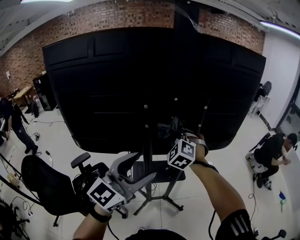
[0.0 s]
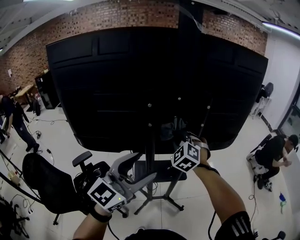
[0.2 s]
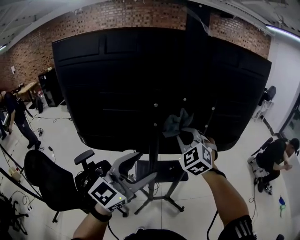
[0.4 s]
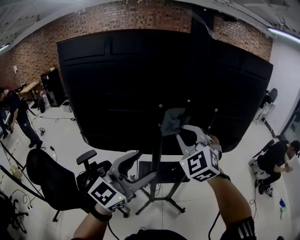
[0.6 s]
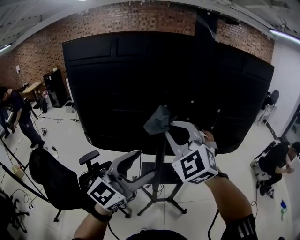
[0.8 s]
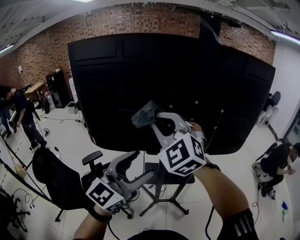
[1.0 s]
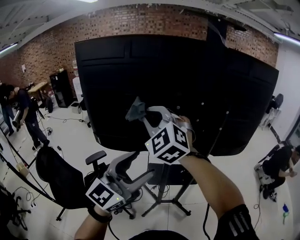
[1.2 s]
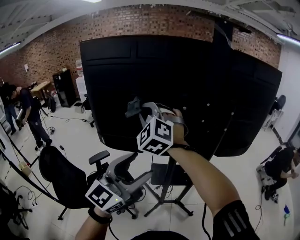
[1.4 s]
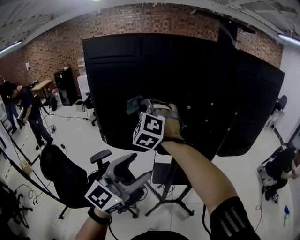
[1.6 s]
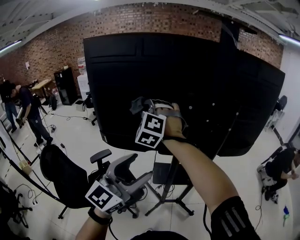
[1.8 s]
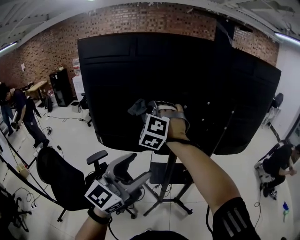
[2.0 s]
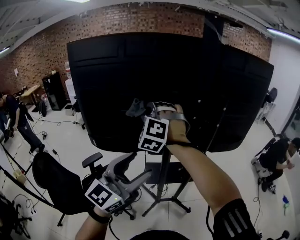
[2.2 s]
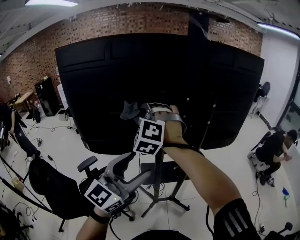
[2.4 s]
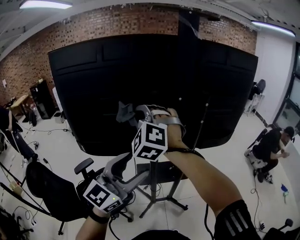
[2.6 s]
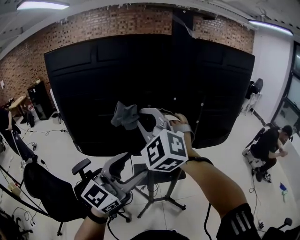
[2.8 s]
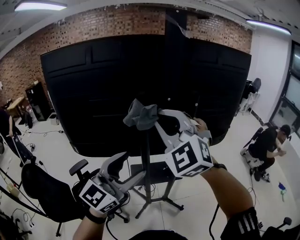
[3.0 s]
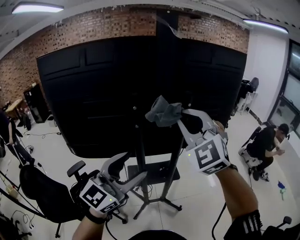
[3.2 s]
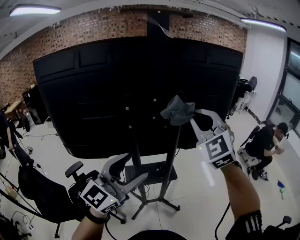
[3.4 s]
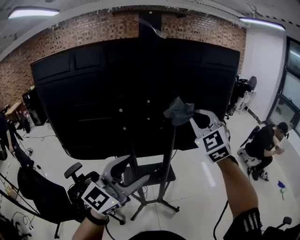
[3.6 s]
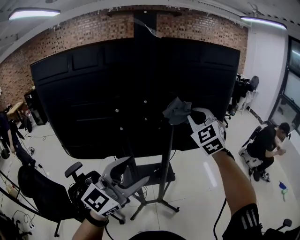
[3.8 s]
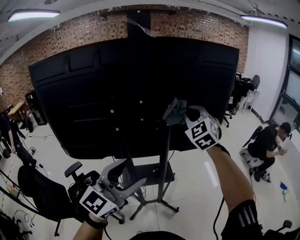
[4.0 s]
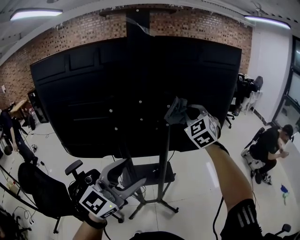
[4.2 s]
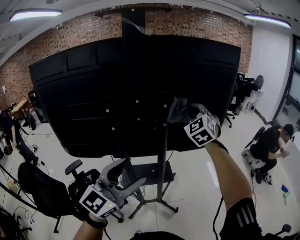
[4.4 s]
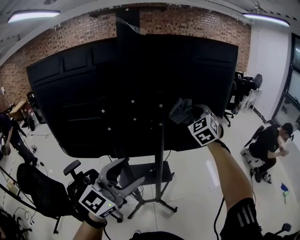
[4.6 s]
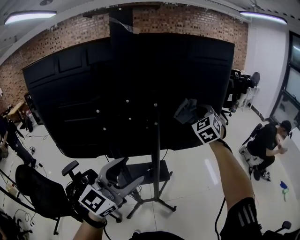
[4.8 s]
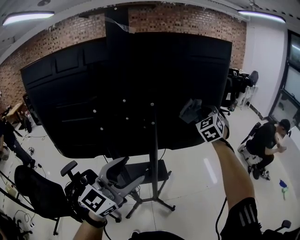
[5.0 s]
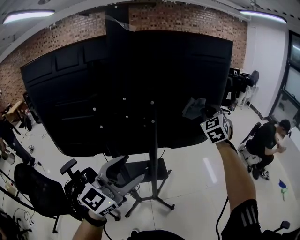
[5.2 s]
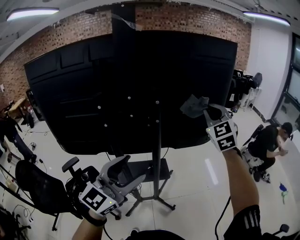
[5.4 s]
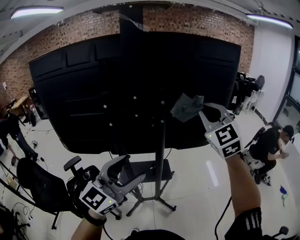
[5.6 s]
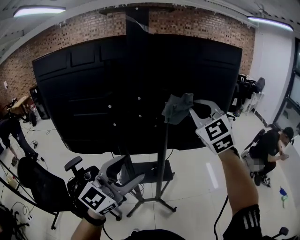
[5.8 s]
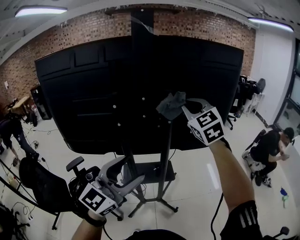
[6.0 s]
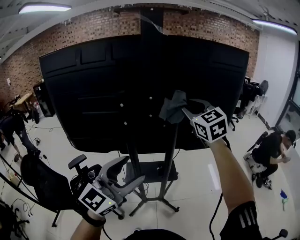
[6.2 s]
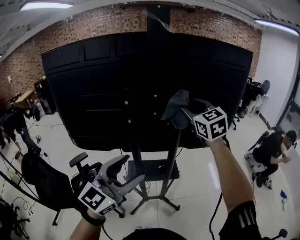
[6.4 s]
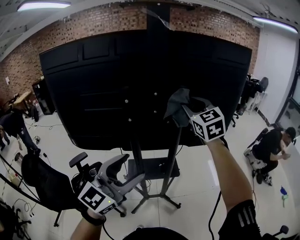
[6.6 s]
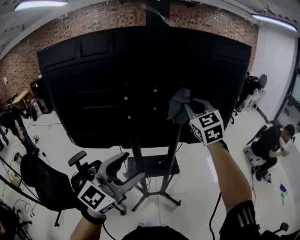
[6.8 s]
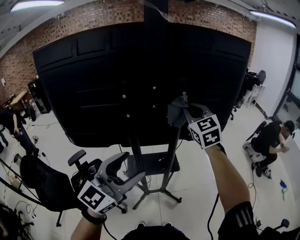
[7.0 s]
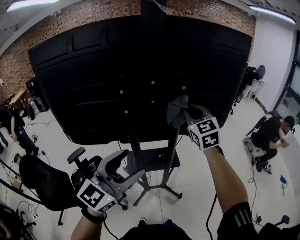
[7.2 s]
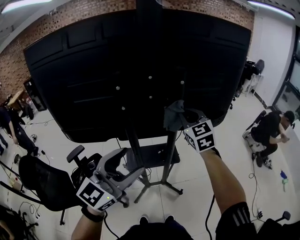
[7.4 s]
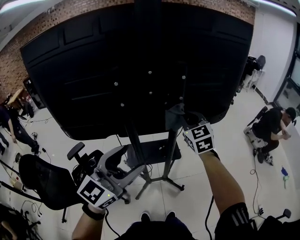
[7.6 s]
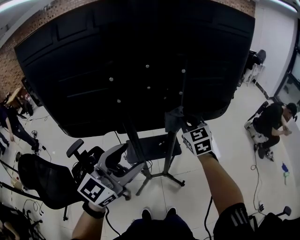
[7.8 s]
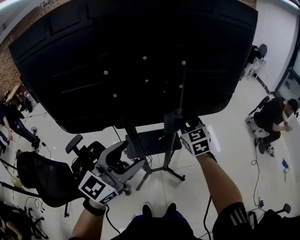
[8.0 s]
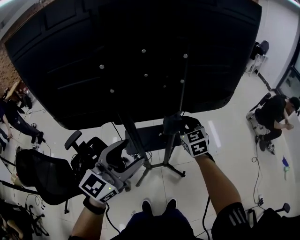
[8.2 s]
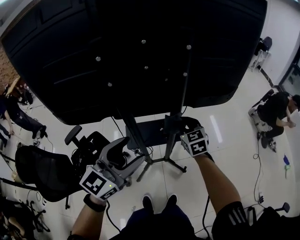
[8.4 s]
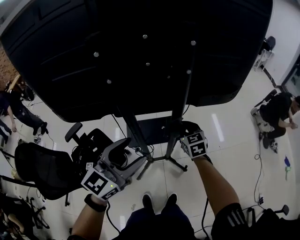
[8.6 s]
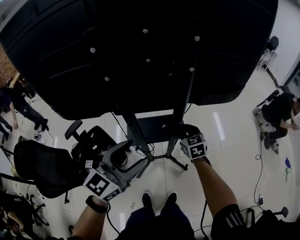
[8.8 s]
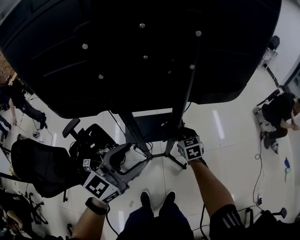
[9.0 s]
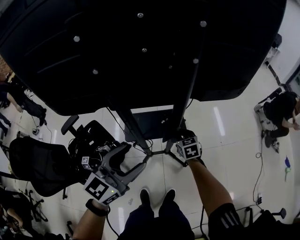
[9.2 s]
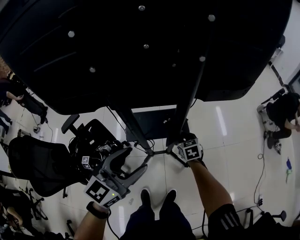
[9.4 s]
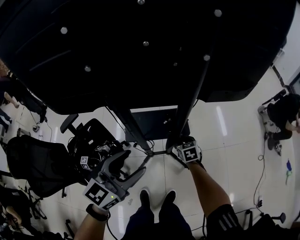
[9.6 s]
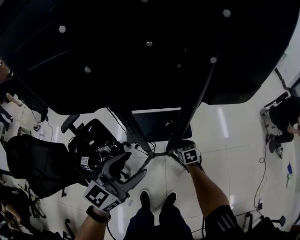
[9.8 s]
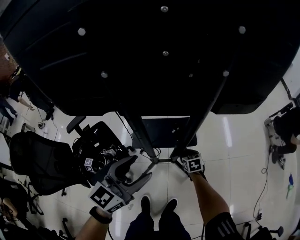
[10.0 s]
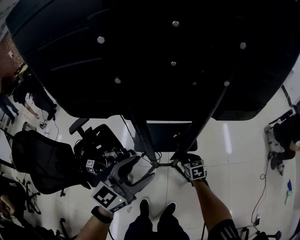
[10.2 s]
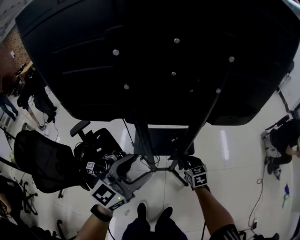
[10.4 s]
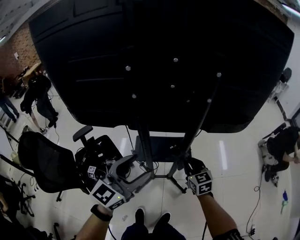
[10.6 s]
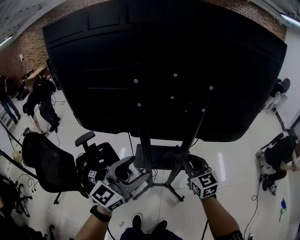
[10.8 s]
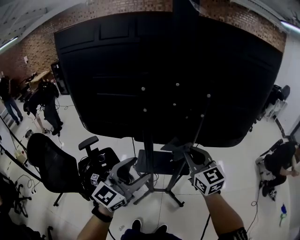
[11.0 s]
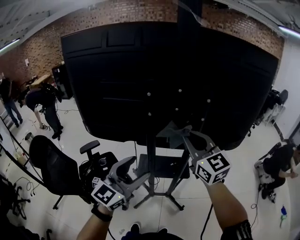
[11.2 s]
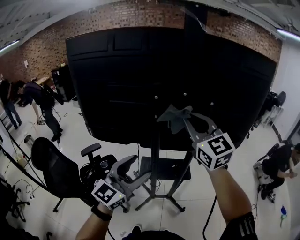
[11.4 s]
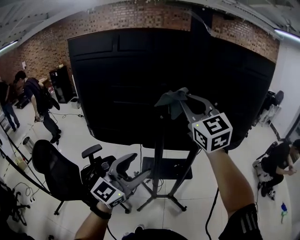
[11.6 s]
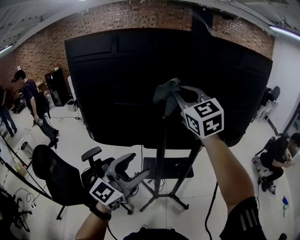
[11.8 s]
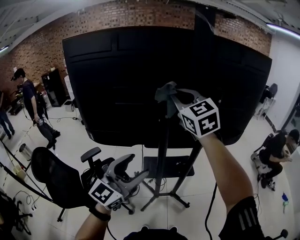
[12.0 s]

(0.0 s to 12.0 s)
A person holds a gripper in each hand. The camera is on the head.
0.0 s - 1.6 s: The right gripper travels to the left and upward by about 30 cm, and turns by roughly 20 degrees. The left gripper heads to the left and backward, covering about 15 cm.
1.6 s - 3.0 s: The left gripper is displaced to the right by approximately 10 cm. The right gripper heads to the right, covering roughly 25 cm.
3.0 s - 4.4 s: The right gripper shifts approximately 30 cm forward and to the right, and rotates about 20 degrees, while the left gripper shifts approximately 15 cm to the right.
4.4 s - 6.0 s: The right gripper shifts approximately 10 cm backward and upward, and moves roughly 15 cm to the right and comes back.
6.0 s - 7.6 s: The left gripper moves about 5 cm. The right gripper travels downward by about 20 cm, and opens, then closes again.
7.6 s - 9.0 s: The right gripper travels downward by roughly 30 cm, and rotates roughly 30 degrees, while the left gripper goes approximately 15 cm downward.
9.0 s - 10.4 s: The right gripper reaches roughly 20 cm downward, then returns.
10.4 s - 12.0 s: The left gripper travels upward, to the left and backward by some 20 cm. The right gripper is displaced upward by approximately 60 cm, and points its fingers roughly 30 degrees further upward.

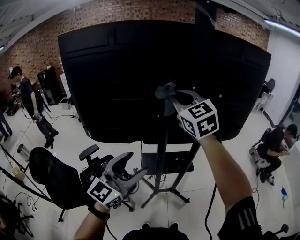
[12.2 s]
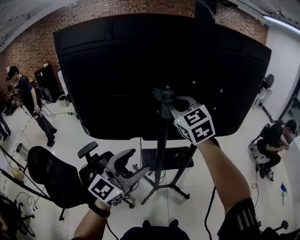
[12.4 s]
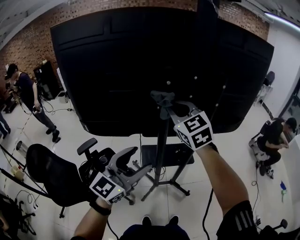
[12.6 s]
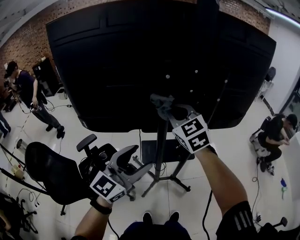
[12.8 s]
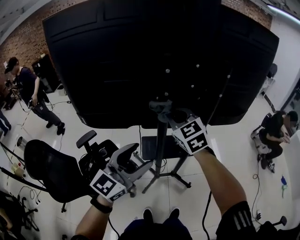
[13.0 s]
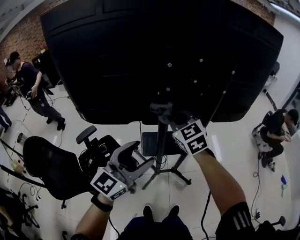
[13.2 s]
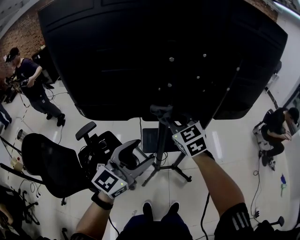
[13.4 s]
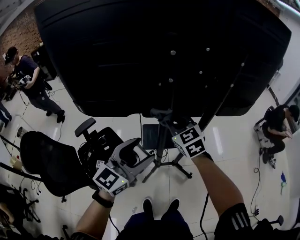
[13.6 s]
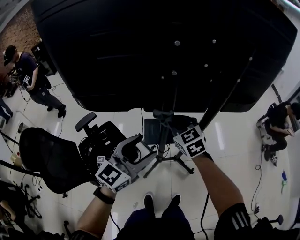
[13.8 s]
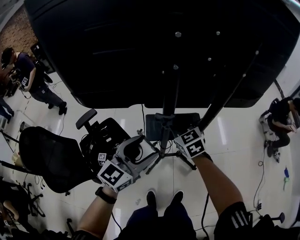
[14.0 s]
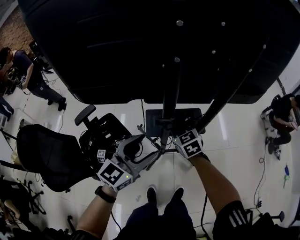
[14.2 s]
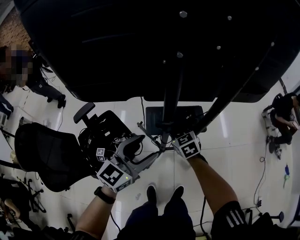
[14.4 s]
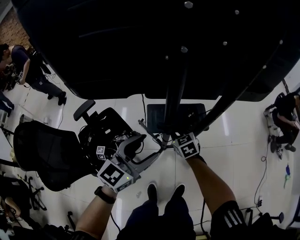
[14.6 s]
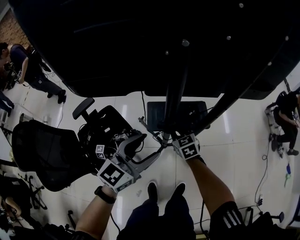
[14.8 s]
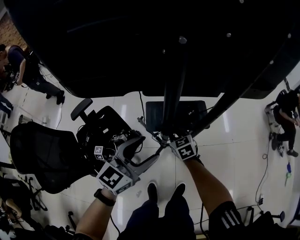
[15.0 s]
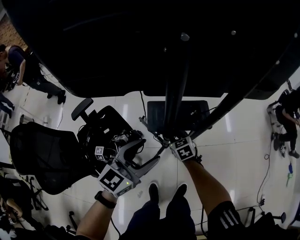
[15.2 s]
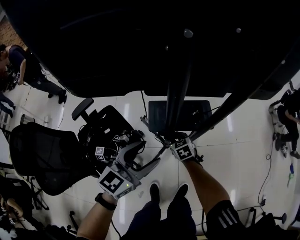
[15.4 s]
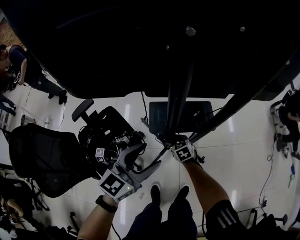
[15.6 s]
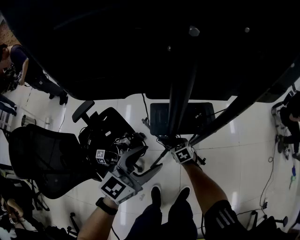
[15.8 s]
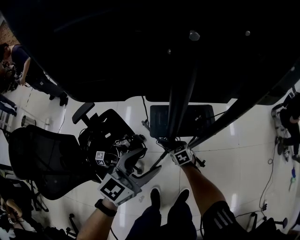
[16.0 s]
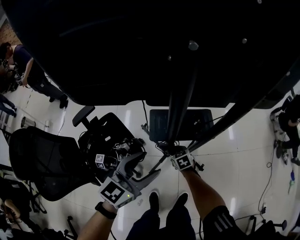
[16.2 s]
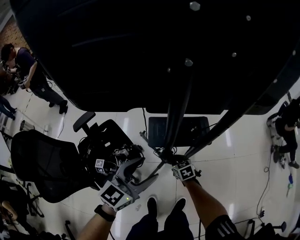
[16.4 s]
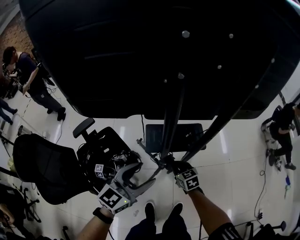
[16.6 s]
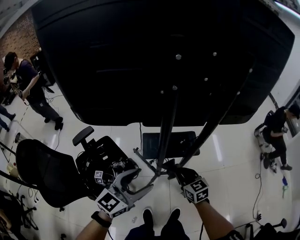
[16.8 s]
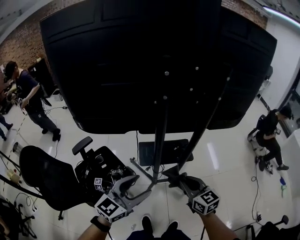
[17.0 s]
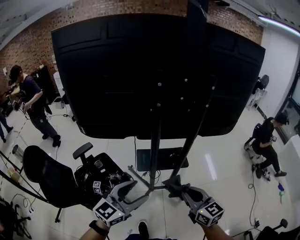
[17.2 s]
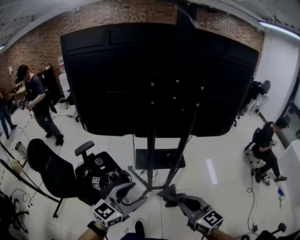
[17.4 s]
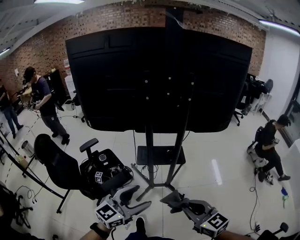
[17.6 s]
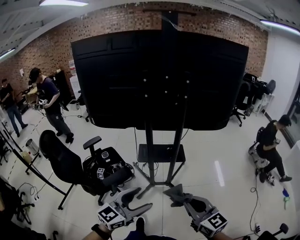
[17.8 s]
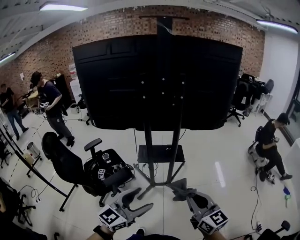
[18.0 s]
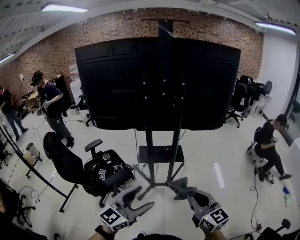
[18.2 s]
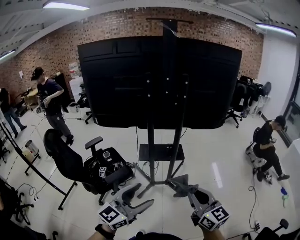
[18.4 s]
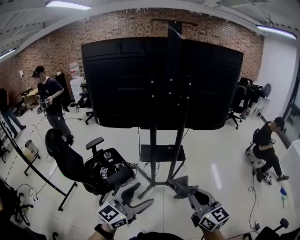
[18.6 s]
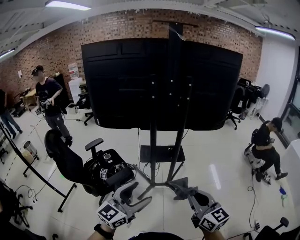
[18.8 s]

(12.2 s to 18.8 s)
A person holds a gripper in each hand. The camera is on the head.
12.2 s - 13.8 s: The right gripper heads downward, covering about 30 cm, and swivels approximately 20 degrees, while the left gripper shifts approximately 15 cm downward and forward.
13.8 s - 15.4 s: The left gripper travels downward by roughly 15 cm. Meanwhile the right gripper is displaced downward by about 35 cm, and turns by about 20 degrees.
15.4 s - 17.2 s: The left gripper shifts about 20 cm backward and upward. The right gripper heads upward and backward, covering some 40 cm, and tilts its fingers roughly 40 degrees upward.
17.2 s - 18.8 s: Both grippers travel together backward, some 25 cm.

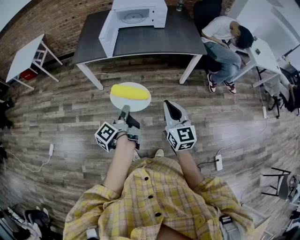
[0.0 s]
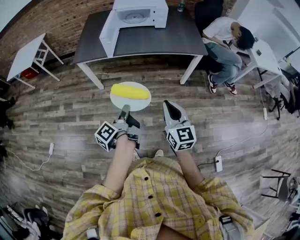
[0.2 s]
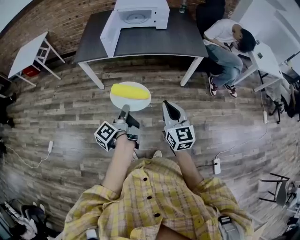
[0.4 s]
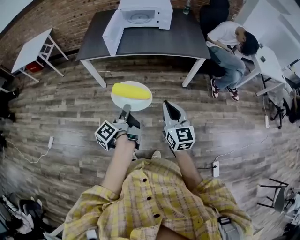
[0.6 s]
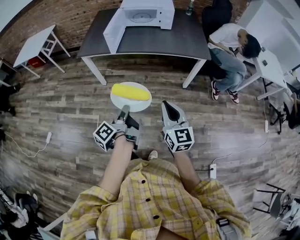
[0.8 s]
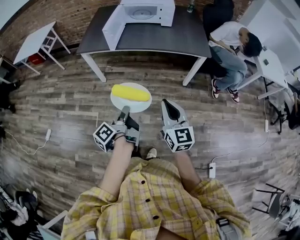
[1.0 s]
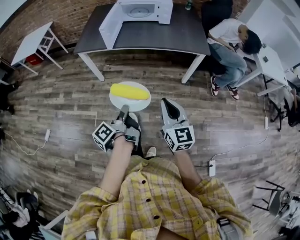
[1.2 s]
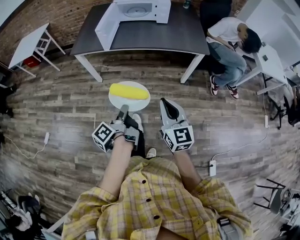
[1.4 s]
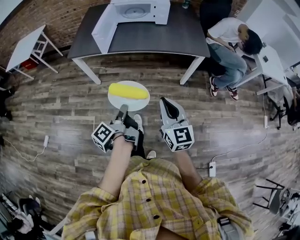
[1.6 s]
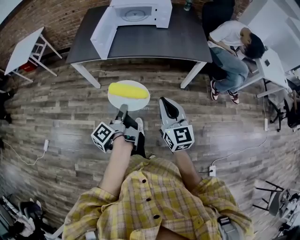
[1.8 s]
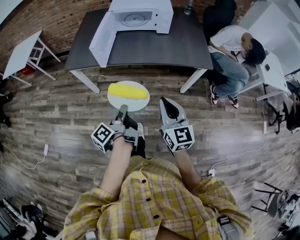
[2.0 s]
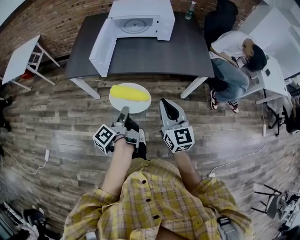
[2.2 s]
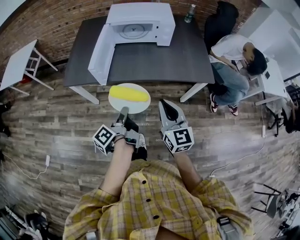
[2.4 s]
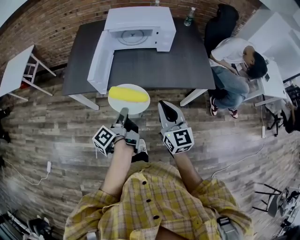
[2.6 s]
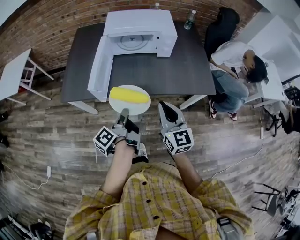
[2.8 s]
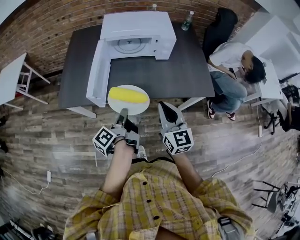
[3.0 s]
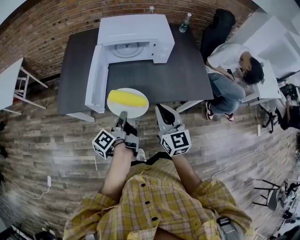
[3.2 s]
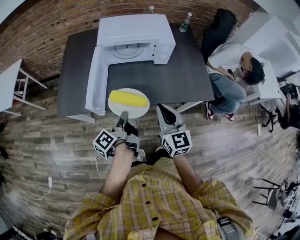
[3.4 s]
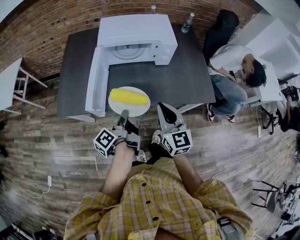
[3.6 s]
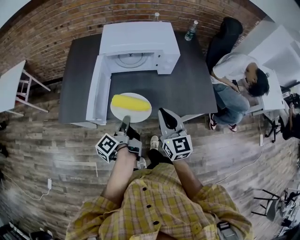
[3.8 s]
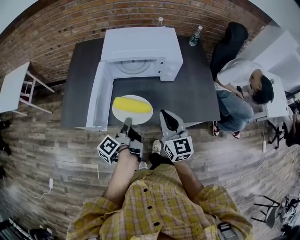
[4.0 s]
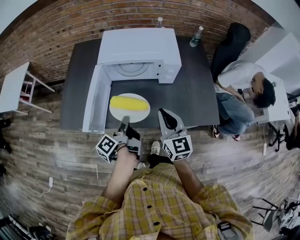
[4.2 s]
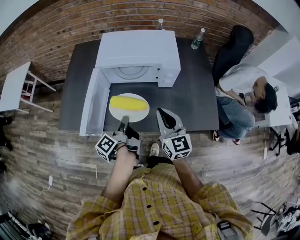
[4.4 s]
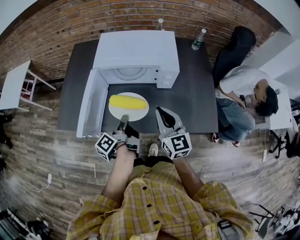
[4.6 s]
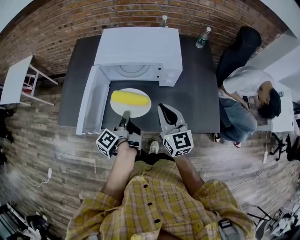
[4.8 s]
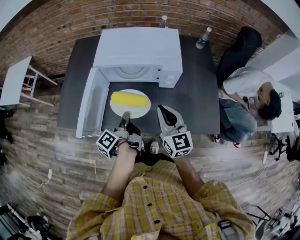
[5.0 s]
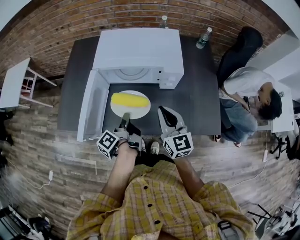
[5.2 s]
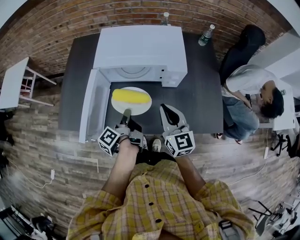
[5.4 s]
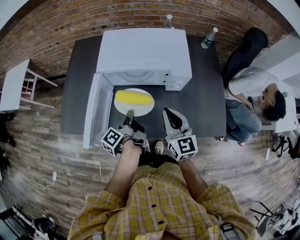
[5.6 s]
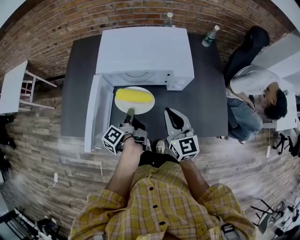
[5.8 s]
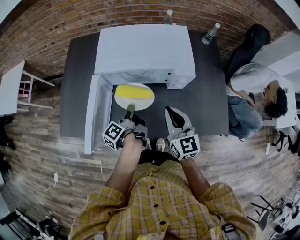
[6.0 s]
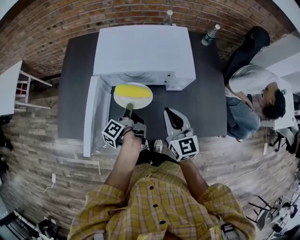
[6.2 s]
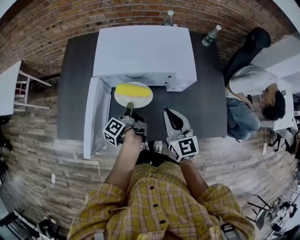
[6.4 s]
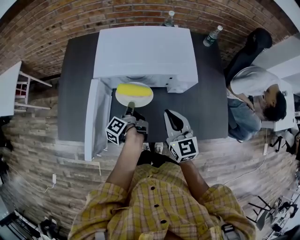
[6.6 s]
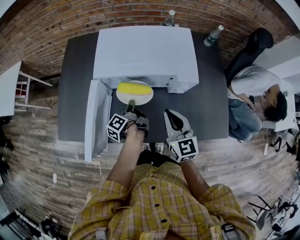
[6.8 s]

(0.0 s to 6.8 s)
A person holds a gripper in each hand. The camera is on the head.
1.4 s - 2.8 s: The right gripper shifts by about 35 cm.
2.8 s - 4.0 s: The right gripper moves some 15 cm.
4.0 s - 5.4 s: The right gripper changes place by approximately 15 cm.
5.4 s - 6.8 s: The right gripper moves some 5 cm.
